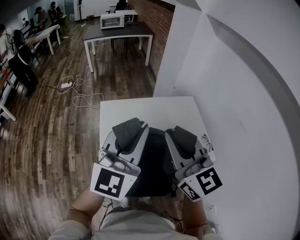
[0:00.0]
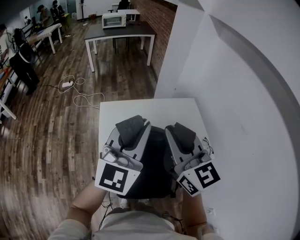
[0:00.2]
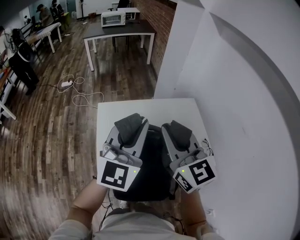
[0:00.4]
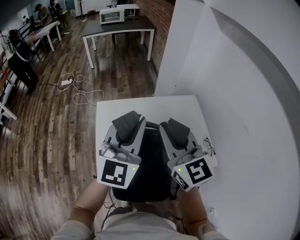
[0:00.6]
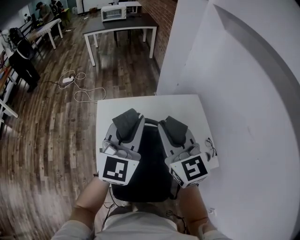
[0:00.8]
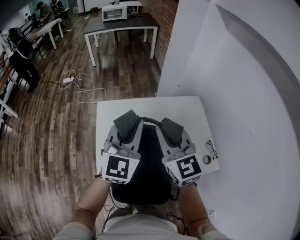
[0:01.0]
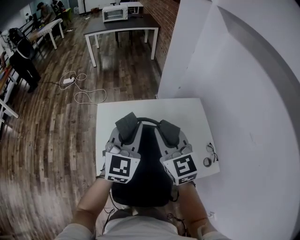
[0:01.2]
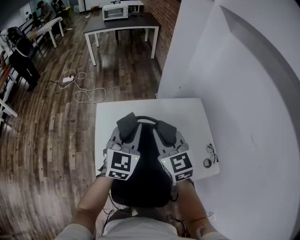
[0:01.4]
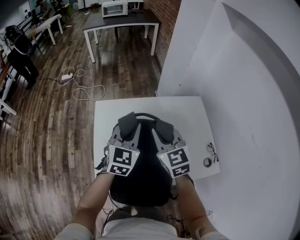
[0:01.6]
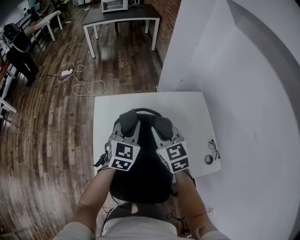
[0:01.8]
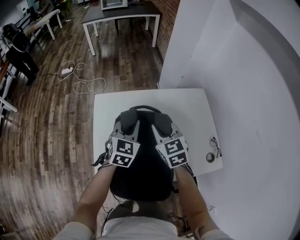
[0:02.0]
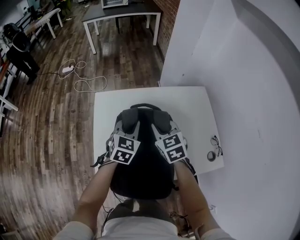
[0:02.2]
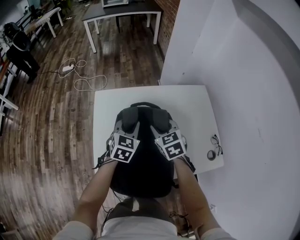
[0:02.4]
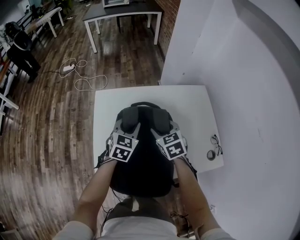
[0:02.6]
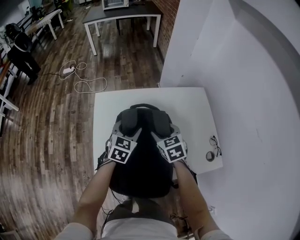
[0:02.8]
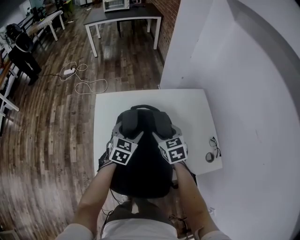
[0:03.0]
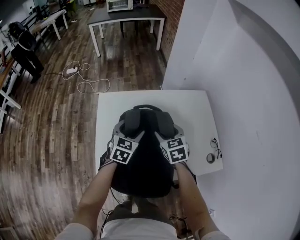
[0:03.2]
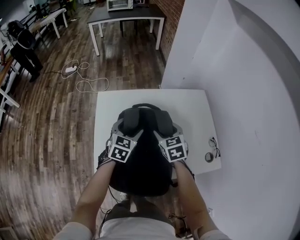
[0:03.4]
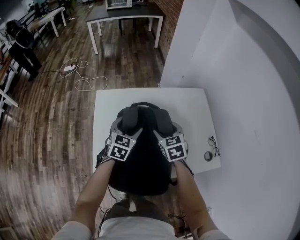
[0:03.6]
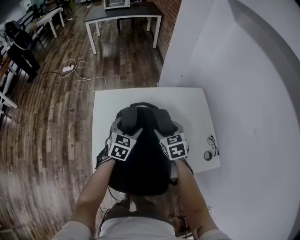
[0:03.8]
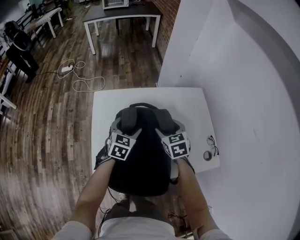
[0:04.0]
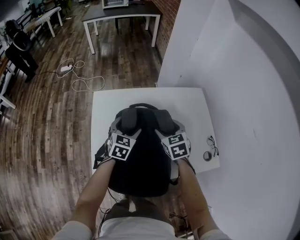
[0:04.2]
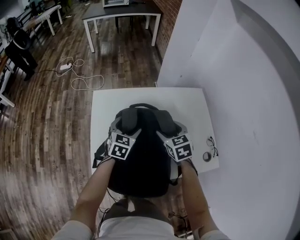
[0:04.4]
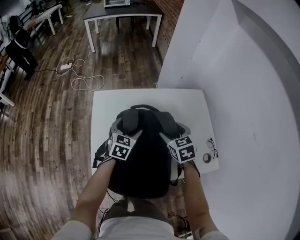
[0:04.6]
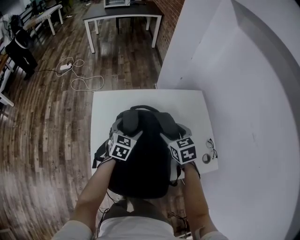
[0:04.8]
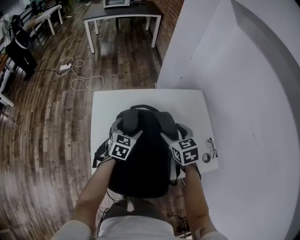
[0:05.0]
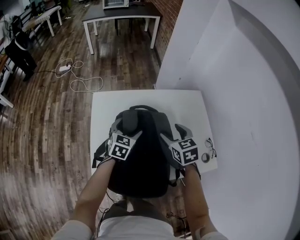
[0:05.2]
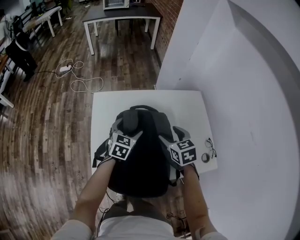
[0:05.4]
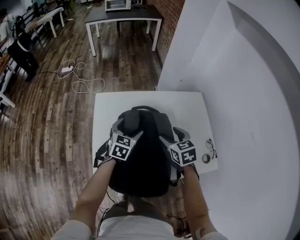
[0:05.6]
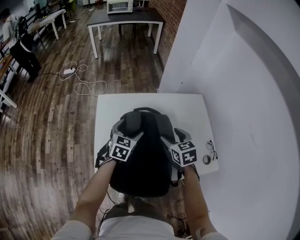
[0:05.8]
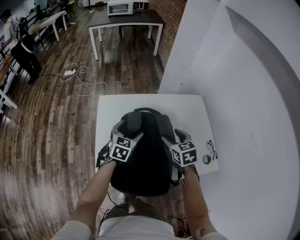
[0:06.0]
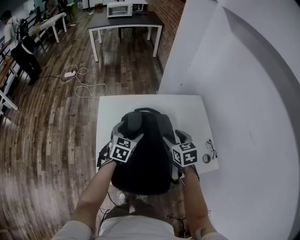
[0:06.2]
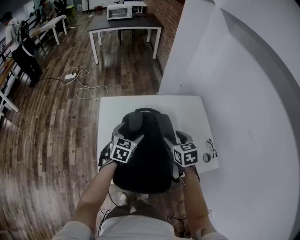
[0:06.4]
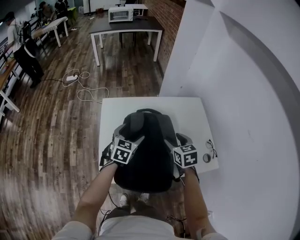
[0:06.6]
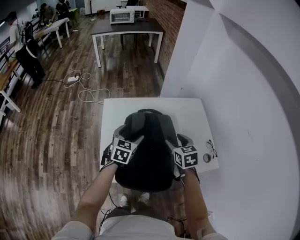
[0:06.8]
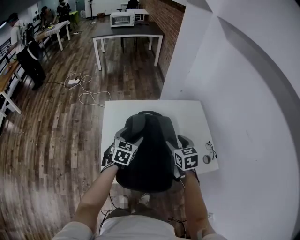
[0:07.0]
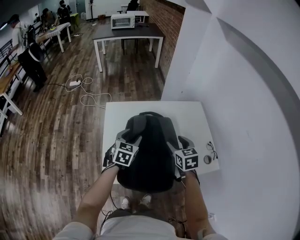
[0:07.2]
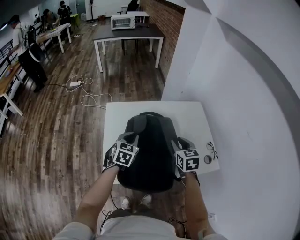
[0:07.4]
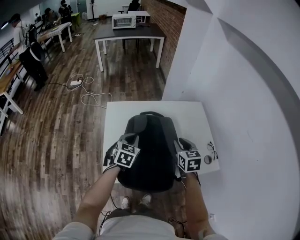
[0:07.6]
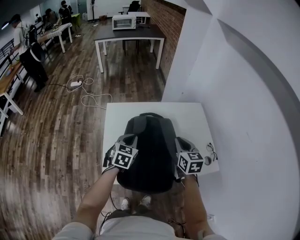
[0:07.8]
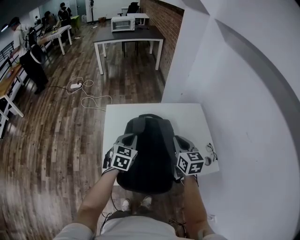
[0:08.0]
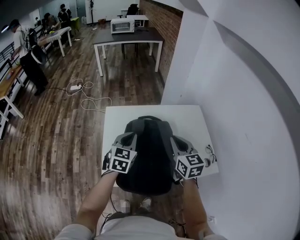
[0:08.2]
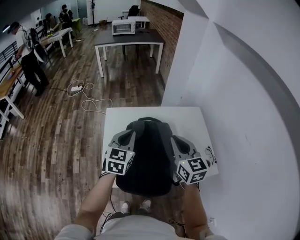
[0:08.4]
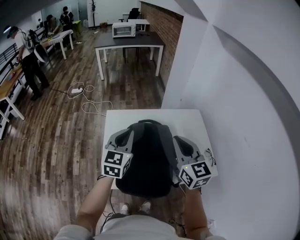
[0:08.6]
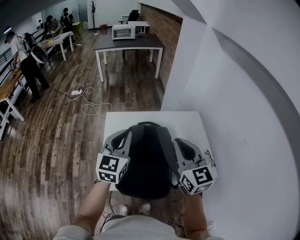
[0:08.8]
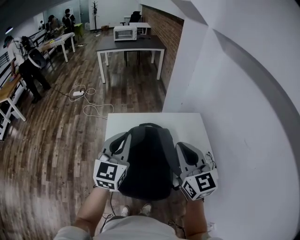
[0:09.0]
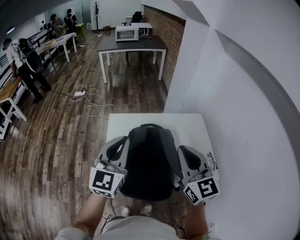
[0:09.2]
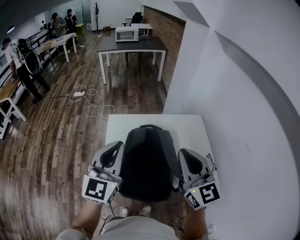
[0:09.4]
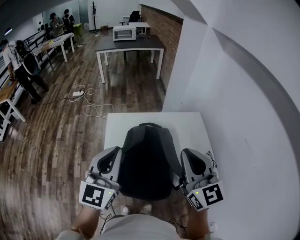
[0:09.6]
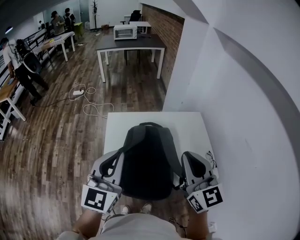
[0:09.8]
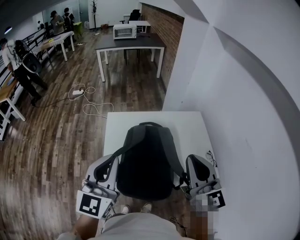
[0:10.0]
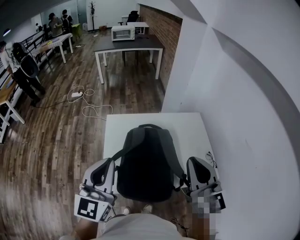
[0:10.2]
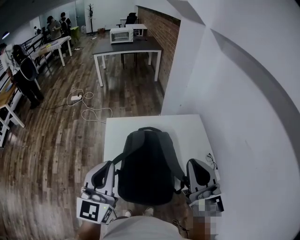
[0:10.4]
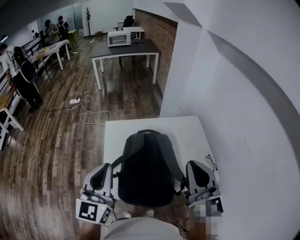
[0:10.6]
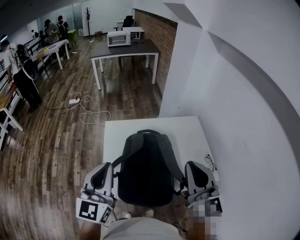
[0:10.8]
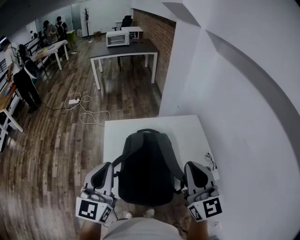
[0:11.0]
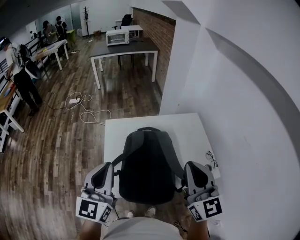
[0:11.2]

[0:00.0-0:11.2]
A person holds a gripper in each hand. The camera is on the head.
0:00.0 to 0:01.6: Both grippers move forward and downward, about 30 cm. The right gripper swivels approximately 20 degrees; the left gripper changes its angle by roughly 30 degrees.
0:01.6 to 0:03.2: The grippers both shift downward by about 15 cm. The right gripper opens its fingers; the left gripper opens.
0:03.2 to 0:04.8: The grippers stay close to where they were, moving slightly.
0:04.8 to 0:06.4: Both grippers move backward, about 5 cm.
0:06.4 to 0:08.0: The left gripper heads backward and upward, covering about 10 cm, and closes its fingers; the right gripper travels upward by approximately 5 cm, and closes up.
0:08.0 to 0:09.6: The grippers both shift upward and backward by some 25 cm. The right gripper turns by approximately 30 degrees. The left gripper tips its fingers upward by roughly 30 degrees.
0:09.6 to 0:11.2: The grippers stay close to where they were, moving slightly.

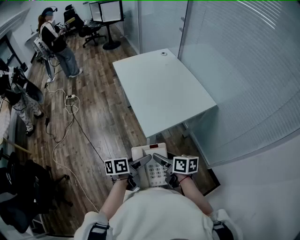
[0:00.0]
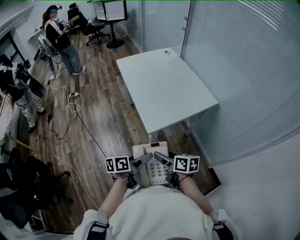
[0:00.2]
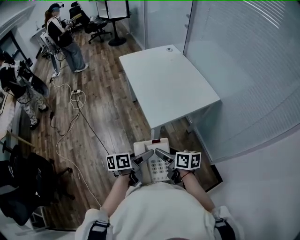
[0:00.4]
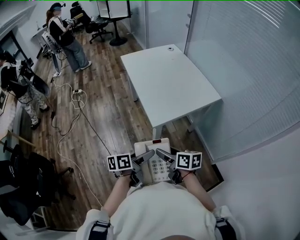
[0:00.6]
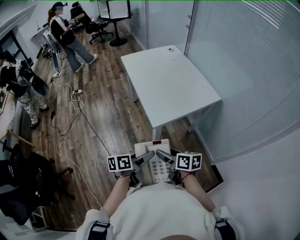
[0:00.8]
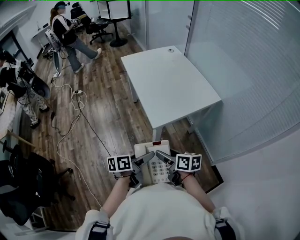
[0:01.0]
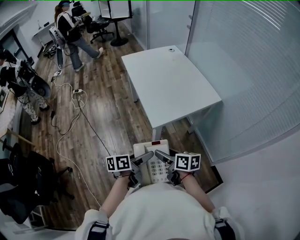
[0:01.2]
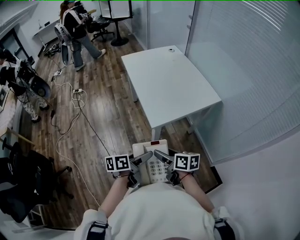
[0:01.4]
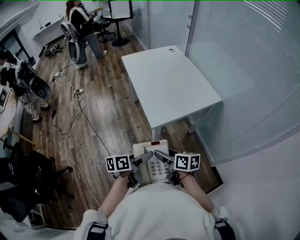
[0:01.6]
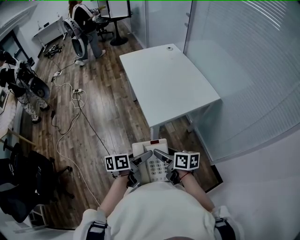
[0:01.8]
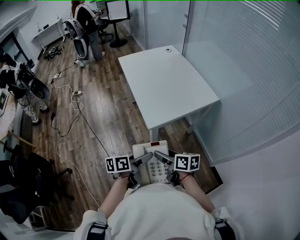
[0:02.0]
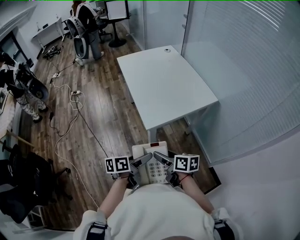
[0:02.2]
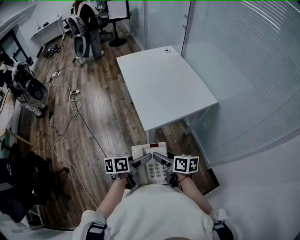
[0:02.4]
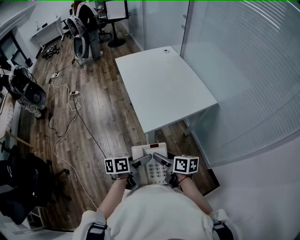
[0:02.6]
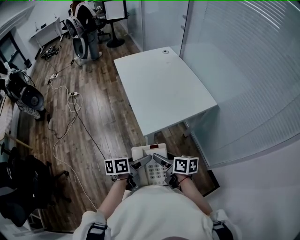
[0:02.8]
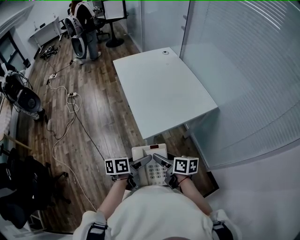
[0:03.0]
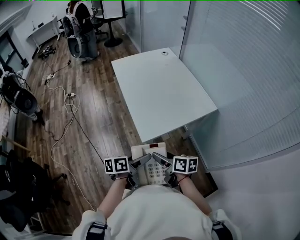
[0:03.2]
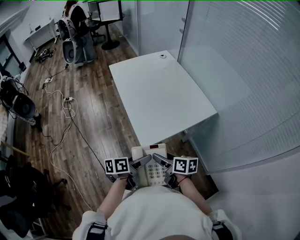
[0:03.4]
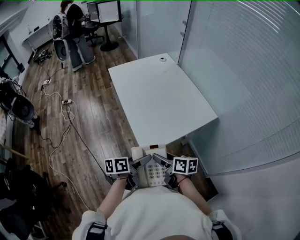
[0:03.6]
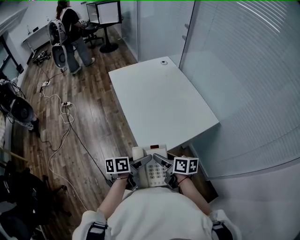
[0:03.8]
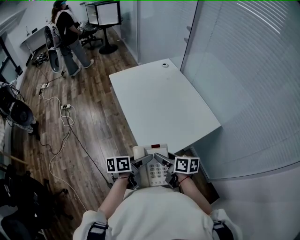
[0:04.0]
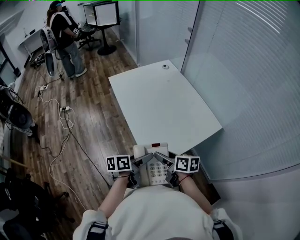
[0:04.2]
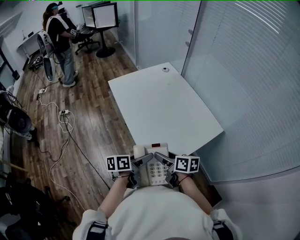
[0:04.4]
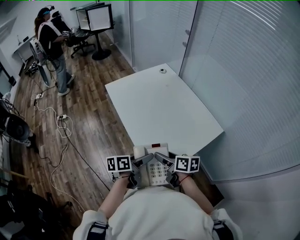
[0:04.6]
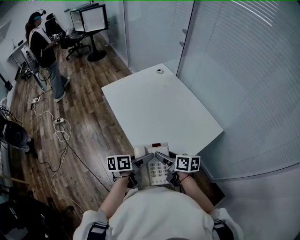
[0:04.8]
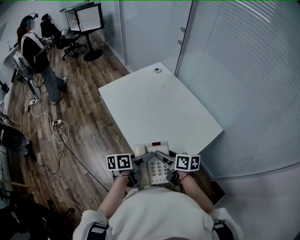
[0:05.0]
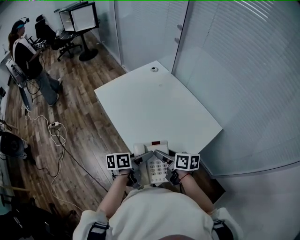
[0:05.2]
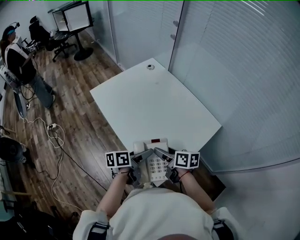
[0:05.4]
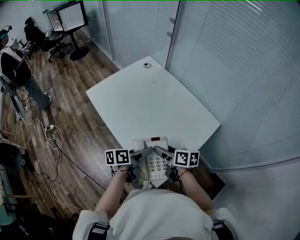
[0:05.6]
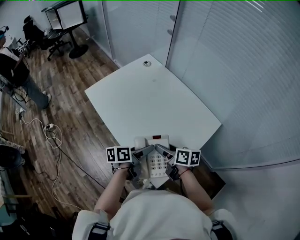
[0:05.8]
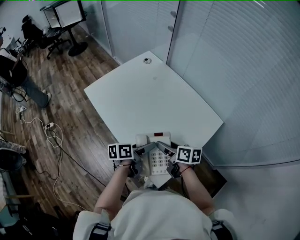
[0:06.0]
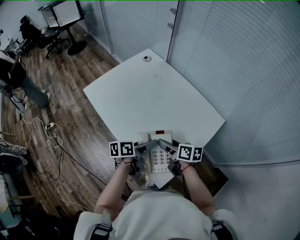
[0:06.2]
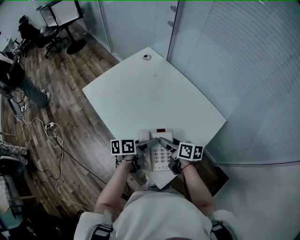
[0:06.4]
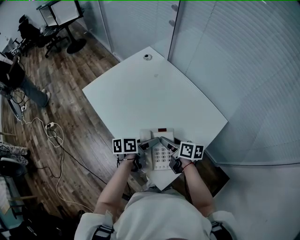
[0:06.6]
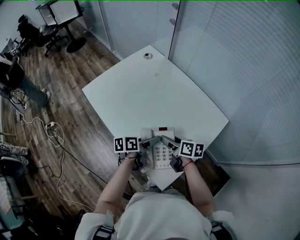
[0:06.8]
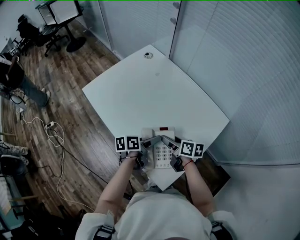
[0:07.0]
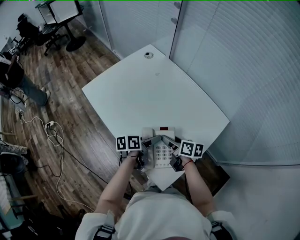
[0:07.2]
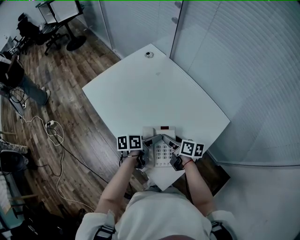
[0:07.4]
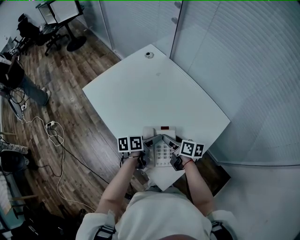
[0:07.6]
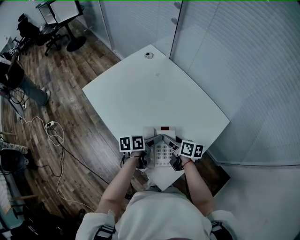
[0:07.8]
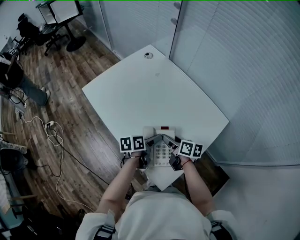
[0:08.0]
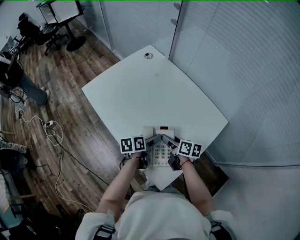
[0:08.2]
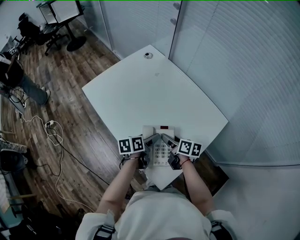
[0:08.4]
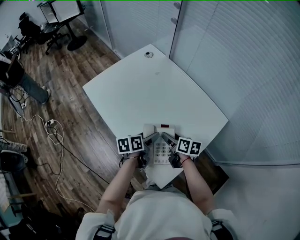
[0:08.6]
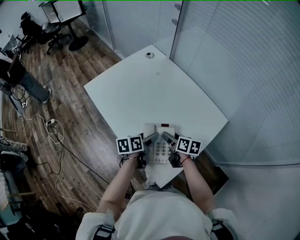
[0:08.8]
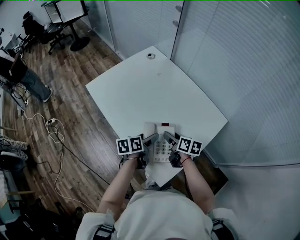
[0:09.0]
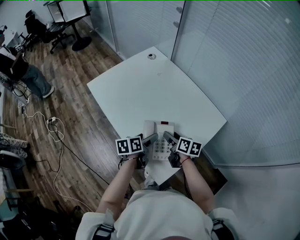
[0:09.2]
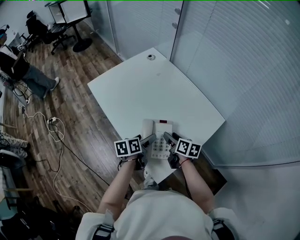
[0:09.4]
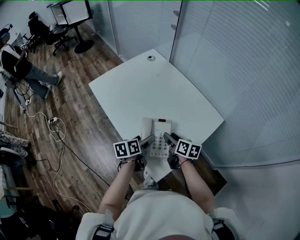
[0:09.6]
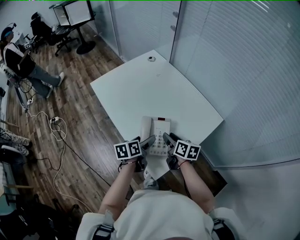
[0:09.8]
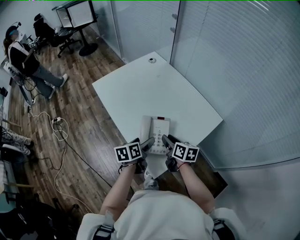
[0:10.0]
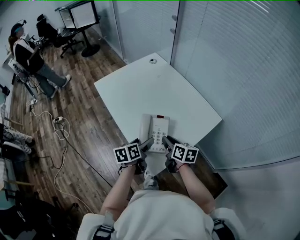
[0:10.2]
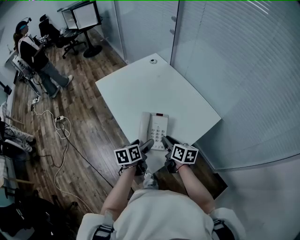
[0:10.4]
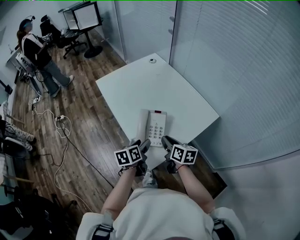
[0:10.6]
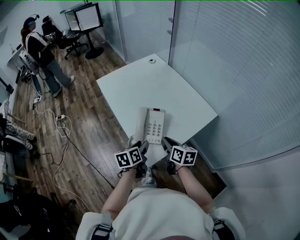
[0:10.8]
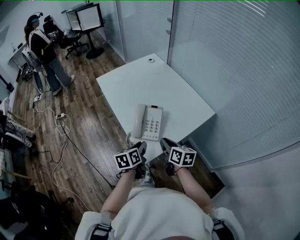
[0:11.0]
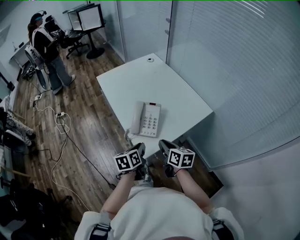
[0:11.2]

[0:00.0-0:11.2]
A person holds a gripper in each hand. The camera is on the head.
0:00.0 to 0:01.6: The grippers stay close to where they were, moving slightly.
0:01.6 to 0:03.2: Both grippers move forward, about 10 cm.
0:03.2 to 0:04.8: Both grippers travel together forward, roughly 25 cm.
0:04.8 to 0:06.4: The left gripper goes some 15 cm forward; the right gripper shifts some 15 cm forward and downward.
0:06.4 to 0:08.0: The right gripper shifts by roughly 5 cm; the left gripper shifts by roughly 5 cm.
0:08.0 to 0:09.6: The left gripper shifts approximately 5 cm backward; the right gripper shifts by about 5 cm.
0:09.6 to 0:11.2: Both grippers travel together backward, roughly 20 cm. The right gripper closes up. The left gripper closes its fingers.

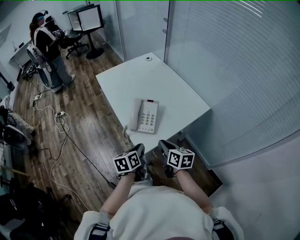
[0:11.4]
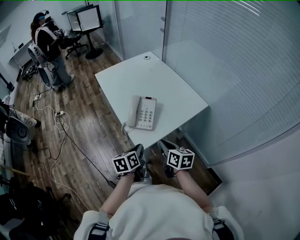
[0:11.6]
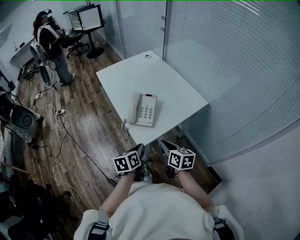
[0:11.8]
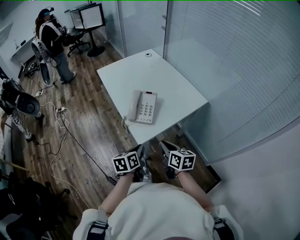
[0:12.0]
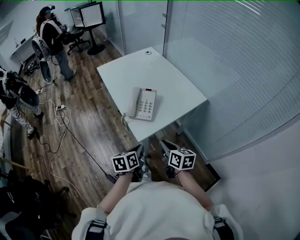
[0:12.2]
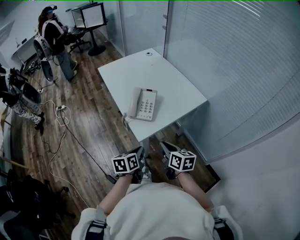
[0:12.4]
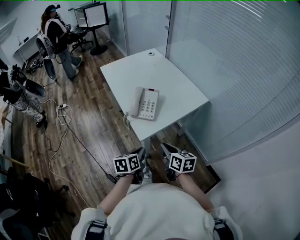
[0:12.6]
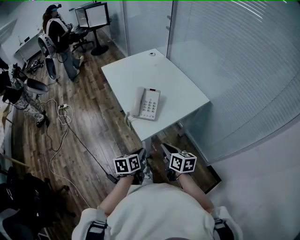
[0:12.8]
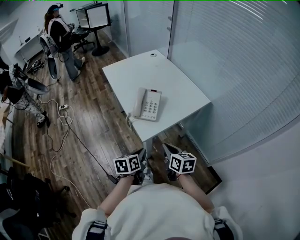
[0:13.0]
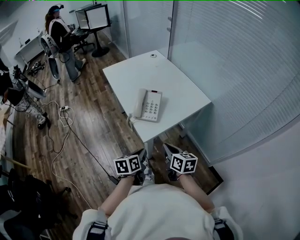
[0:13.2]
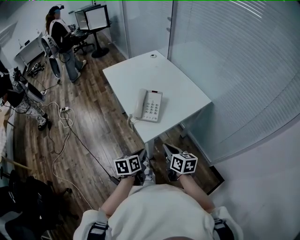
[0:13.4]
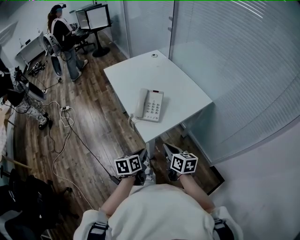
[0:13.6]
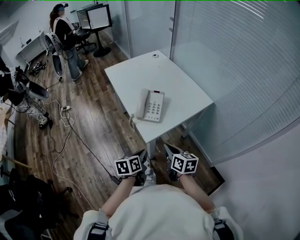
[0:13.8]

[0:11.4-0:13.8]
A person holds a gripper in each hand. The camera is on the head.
0:11.4 to 0:12.6: The two grippers go roughly 10 cm backward.
0:12.6 to 0:13.8: The grippers make only small movements.
